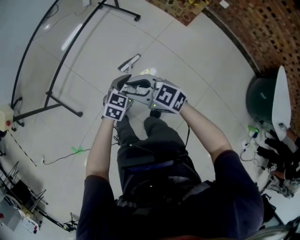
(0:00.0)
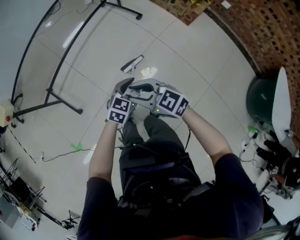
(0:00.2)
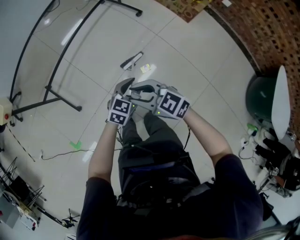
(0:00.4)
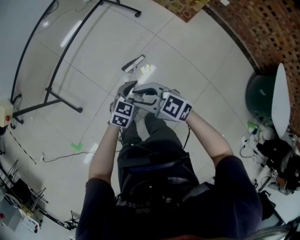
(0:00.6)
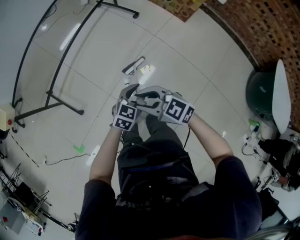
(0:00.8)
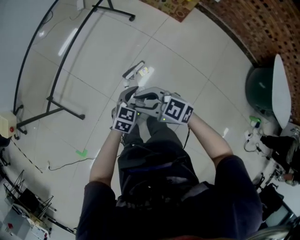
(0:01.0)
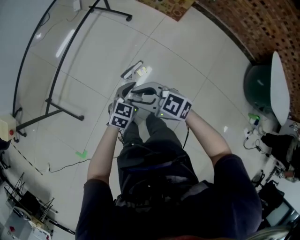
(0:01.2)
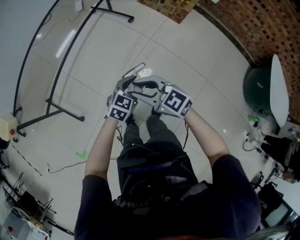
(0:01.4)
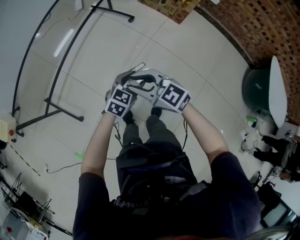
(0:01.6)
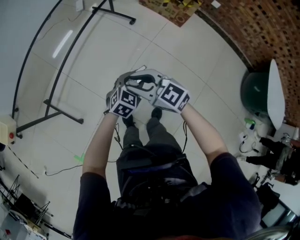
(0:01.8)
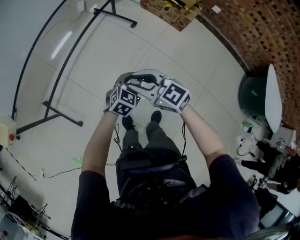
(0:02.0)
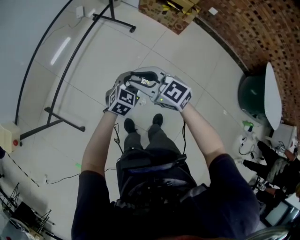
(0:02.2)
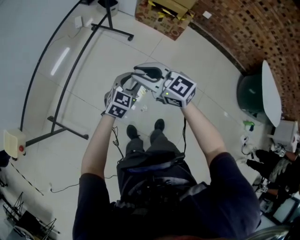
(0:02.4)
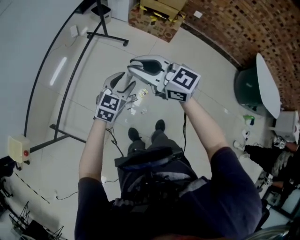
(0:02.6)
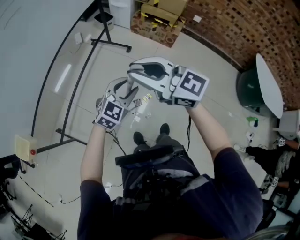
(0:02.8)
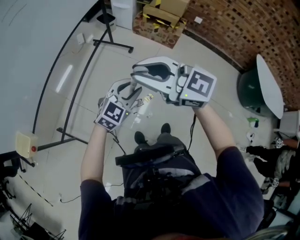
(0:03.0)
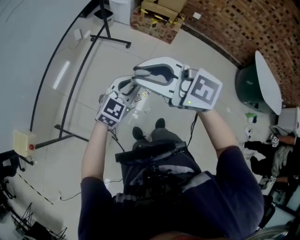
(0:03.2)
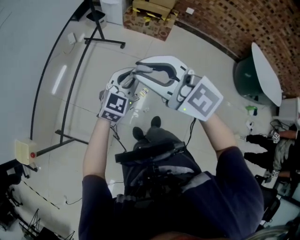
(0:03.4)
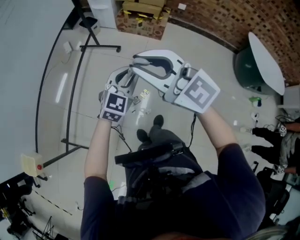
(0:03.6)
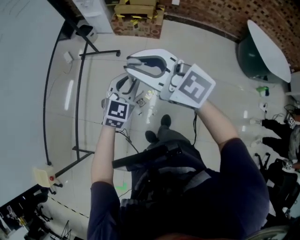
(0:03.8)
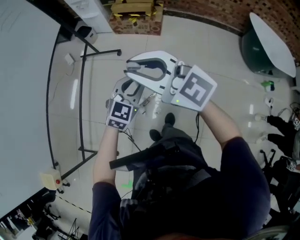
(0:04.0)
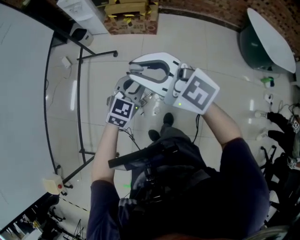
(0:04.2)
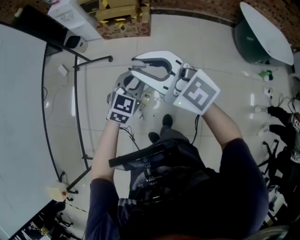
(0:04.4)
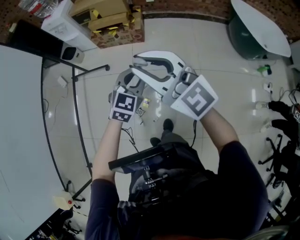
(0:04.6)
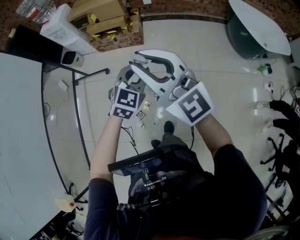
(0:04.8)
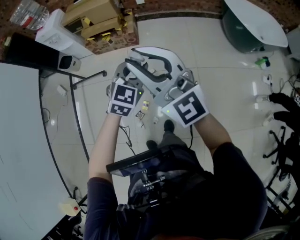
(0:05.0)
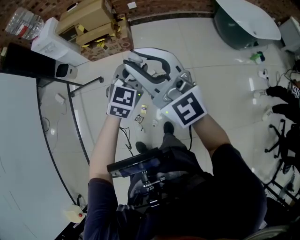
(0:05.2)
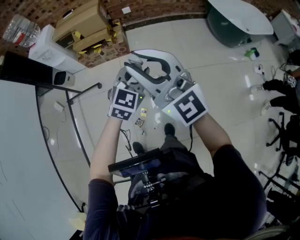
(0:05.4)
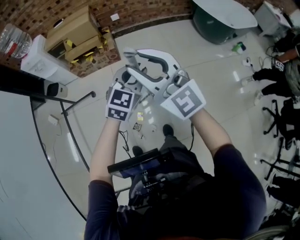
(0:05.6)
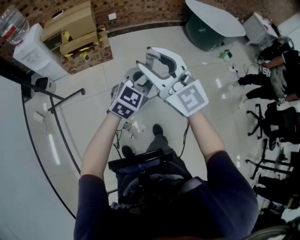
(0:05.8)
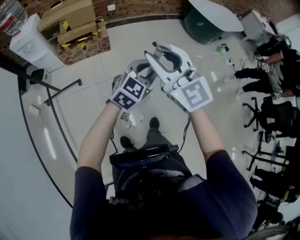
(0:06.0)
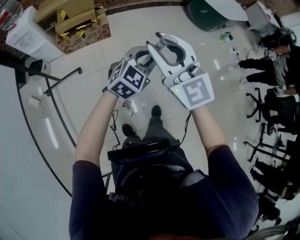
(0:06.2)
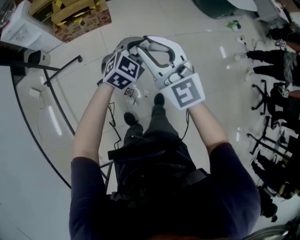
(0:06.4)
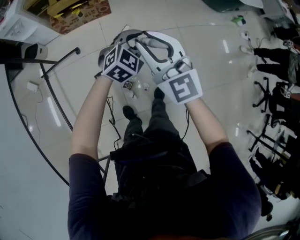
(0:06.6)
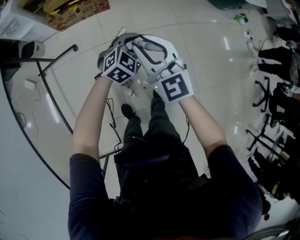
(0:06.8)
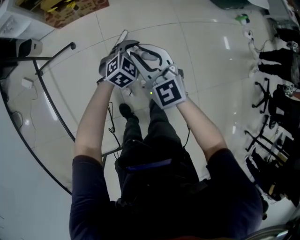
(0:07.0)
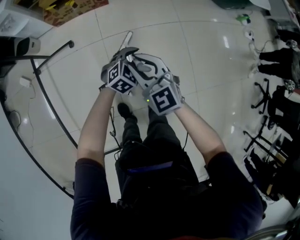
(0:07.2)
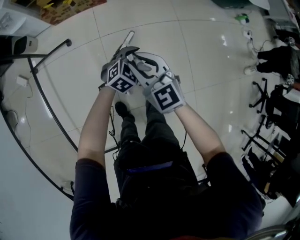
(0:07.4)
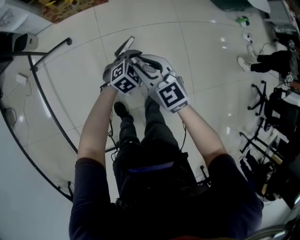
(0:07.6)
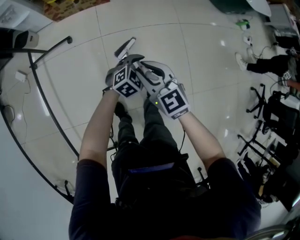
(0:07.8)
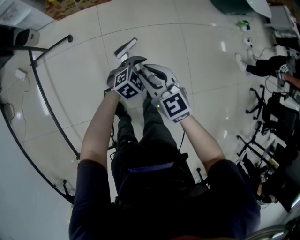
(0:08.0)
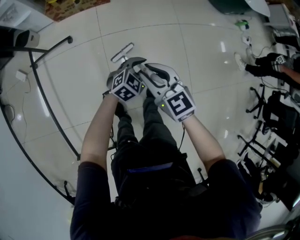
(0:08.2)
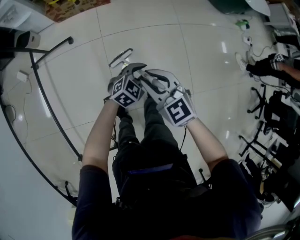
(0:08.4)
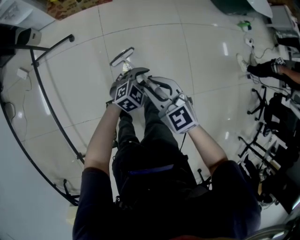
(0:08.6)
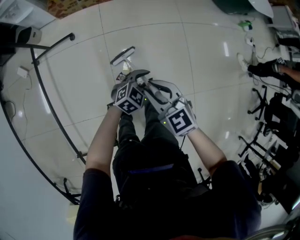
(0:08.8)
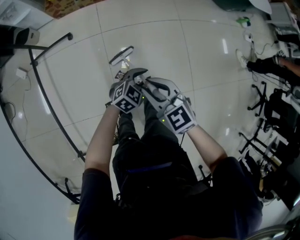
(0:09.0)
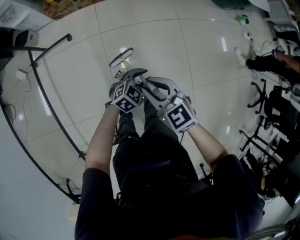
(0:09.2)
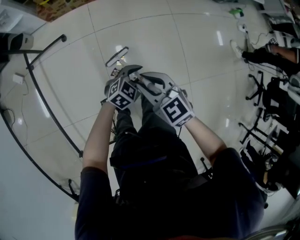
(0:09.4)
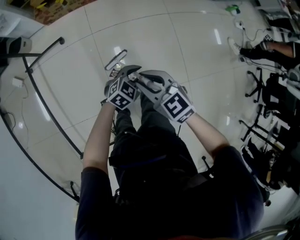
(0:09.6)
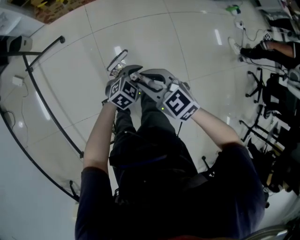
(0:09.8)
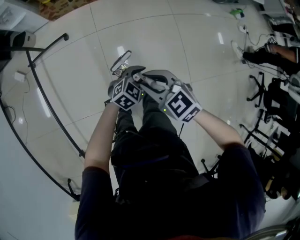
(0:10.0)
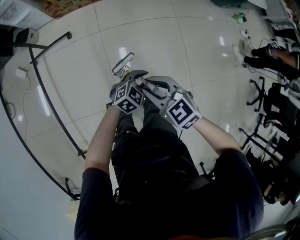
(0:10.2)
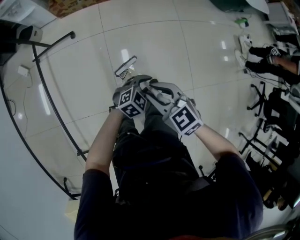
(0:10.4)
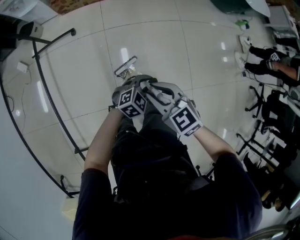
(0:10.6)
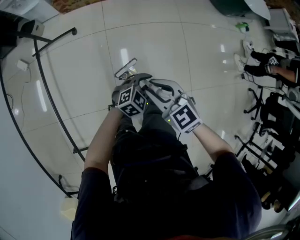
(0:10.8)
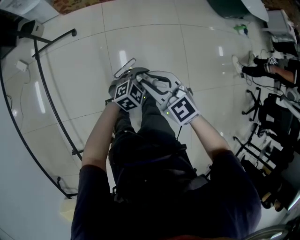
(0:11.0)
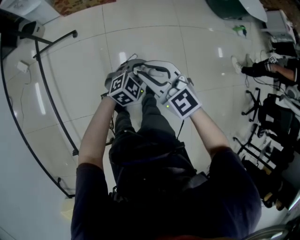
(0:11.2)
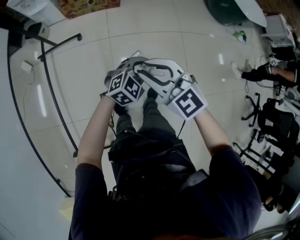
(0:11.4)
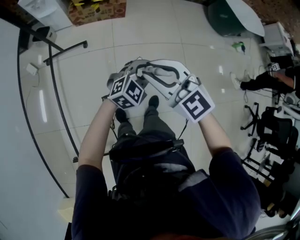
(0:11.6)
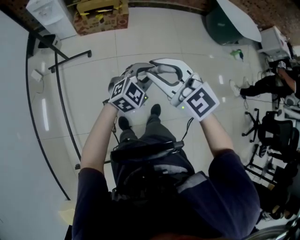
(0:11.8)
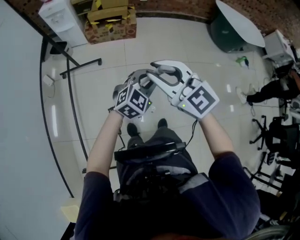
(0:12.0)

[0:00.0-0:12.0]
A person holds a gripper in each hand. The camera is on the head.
0:00.0 to 0:01.6: The right gripper travels backward and back again, about 5 cm each way. Meanwhile the left gripper goes backward and returns, some 5 cm each way.
0:01.6 to 0:03.0: The right gripper shifts roughly 25 cm upward. Meanwhile the left gripper shifts approximately 20 cm upward and to the left, and changes its angle by about 30 degrees.
0:03.0 to 0:04.4: Both grippers travel together to the right and forward, about 30 cm. The right gripper rotates approximately 30 degrees.
0:04.4 to 0:06.0: The left gripper travels upward by some 5 cm, and turns by some 40 degrees. The right gripper changes its angle by approximately 50 degrees.
0:06.0 to 0:07.6: The grippers both shift downward by roughly 30 cm. The left gripper rotates about 30 degrees. The right gripper changes its angle by roughly 30 degrees.
0:07.6 to 0:09.0: Both grippers move backward, approximately 10 cm.
0:09.0 to 0:10.4: The grippers both shift backward by some 5 cm.
0:10.4 to 0:12.0: The left gripper heads upward and to the left, covering some 25 cm, and turns by roughly 30 degrees. The right gripper heads upward, covering about 25 cm, and changes its angle by about 30 degrees.

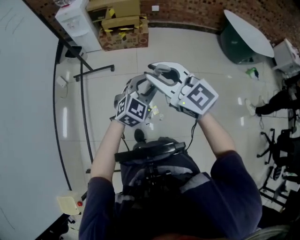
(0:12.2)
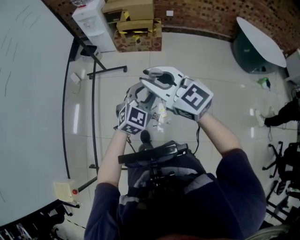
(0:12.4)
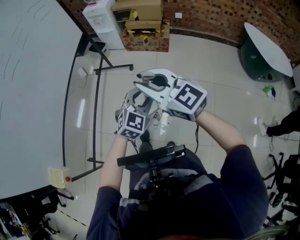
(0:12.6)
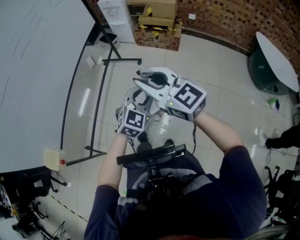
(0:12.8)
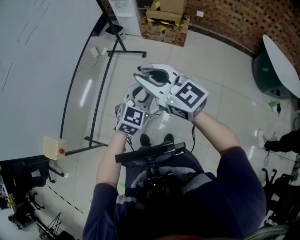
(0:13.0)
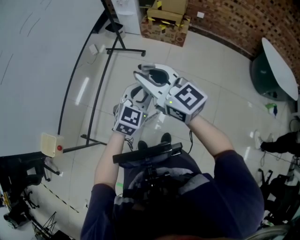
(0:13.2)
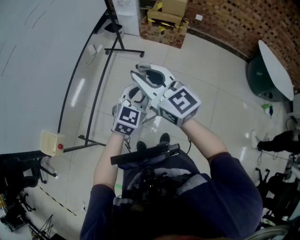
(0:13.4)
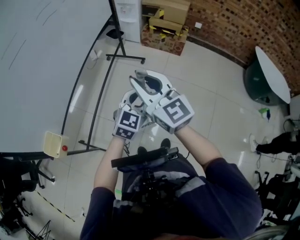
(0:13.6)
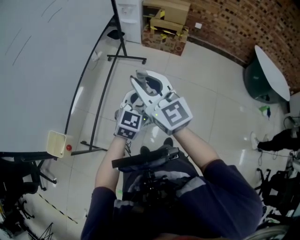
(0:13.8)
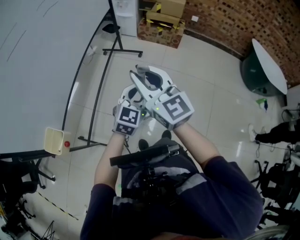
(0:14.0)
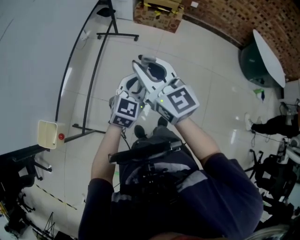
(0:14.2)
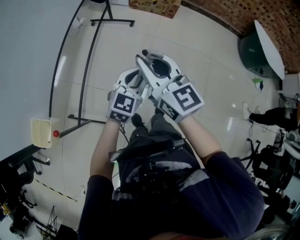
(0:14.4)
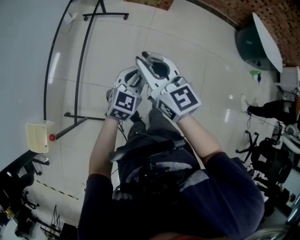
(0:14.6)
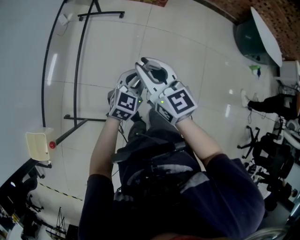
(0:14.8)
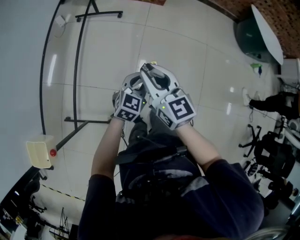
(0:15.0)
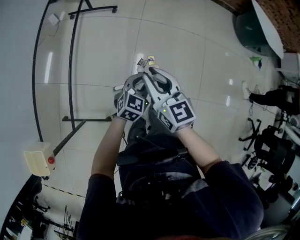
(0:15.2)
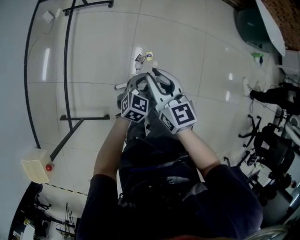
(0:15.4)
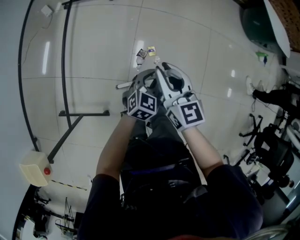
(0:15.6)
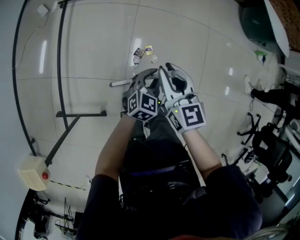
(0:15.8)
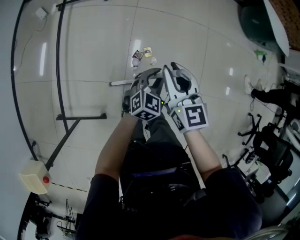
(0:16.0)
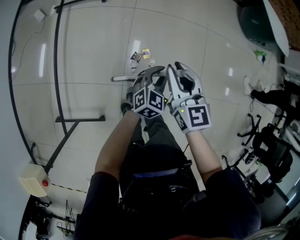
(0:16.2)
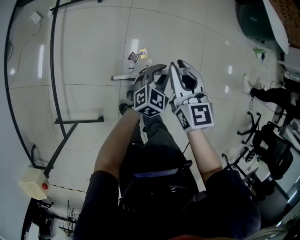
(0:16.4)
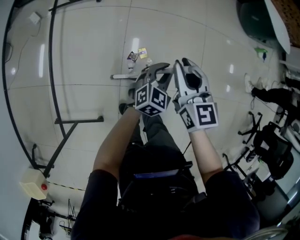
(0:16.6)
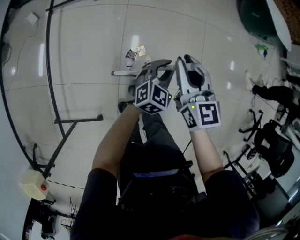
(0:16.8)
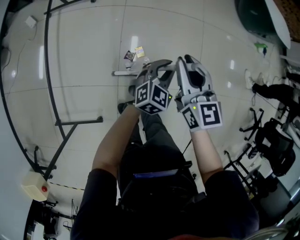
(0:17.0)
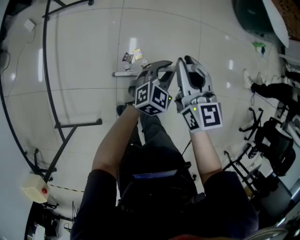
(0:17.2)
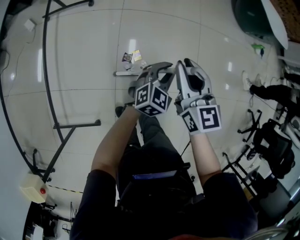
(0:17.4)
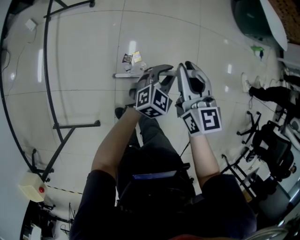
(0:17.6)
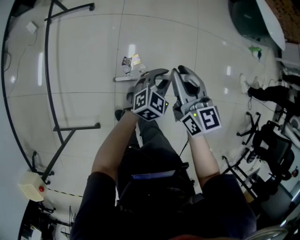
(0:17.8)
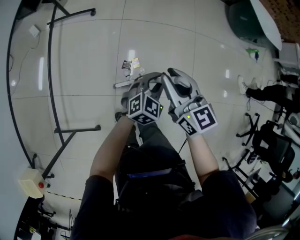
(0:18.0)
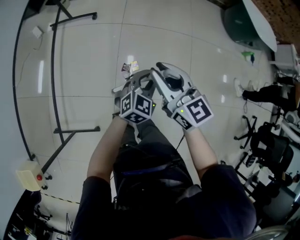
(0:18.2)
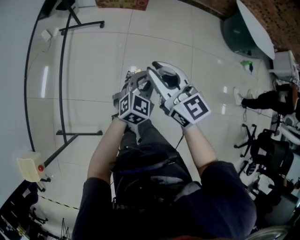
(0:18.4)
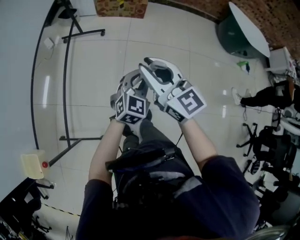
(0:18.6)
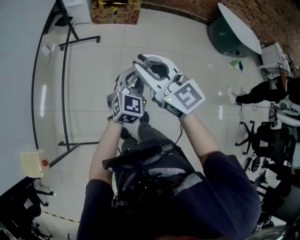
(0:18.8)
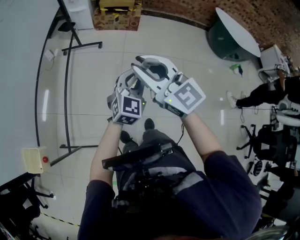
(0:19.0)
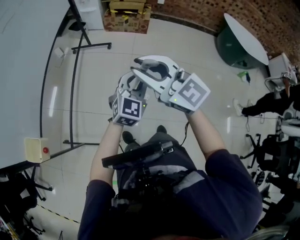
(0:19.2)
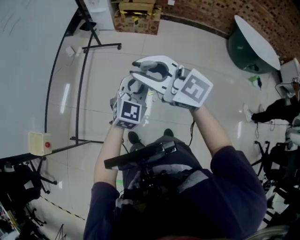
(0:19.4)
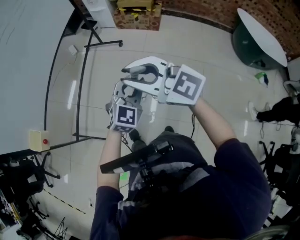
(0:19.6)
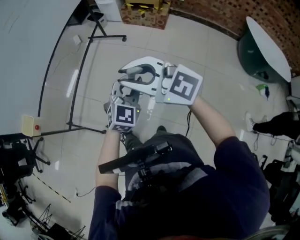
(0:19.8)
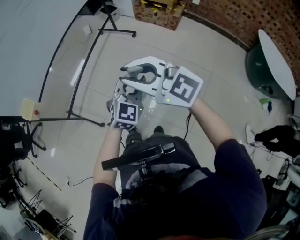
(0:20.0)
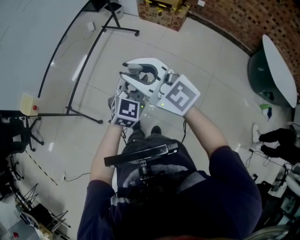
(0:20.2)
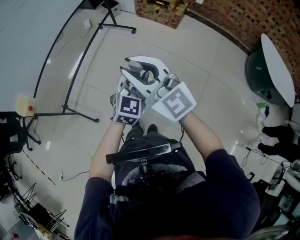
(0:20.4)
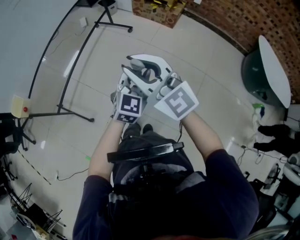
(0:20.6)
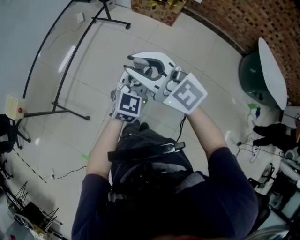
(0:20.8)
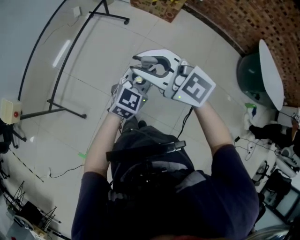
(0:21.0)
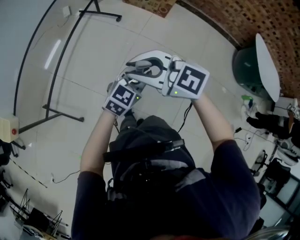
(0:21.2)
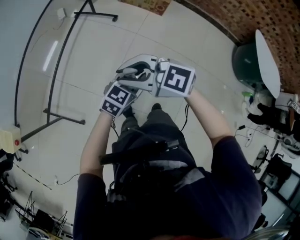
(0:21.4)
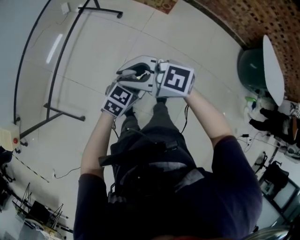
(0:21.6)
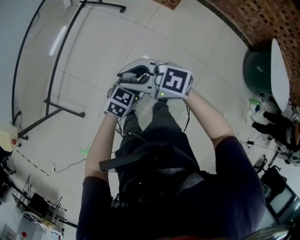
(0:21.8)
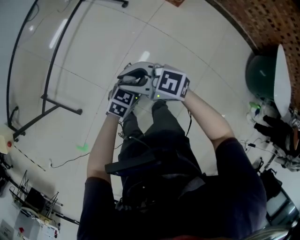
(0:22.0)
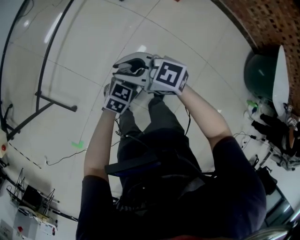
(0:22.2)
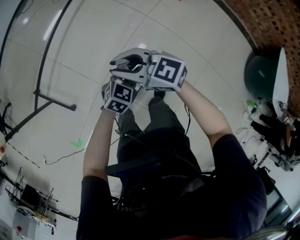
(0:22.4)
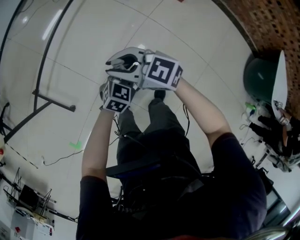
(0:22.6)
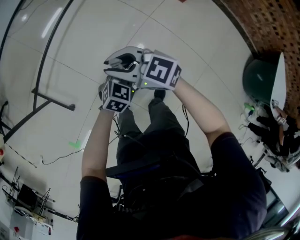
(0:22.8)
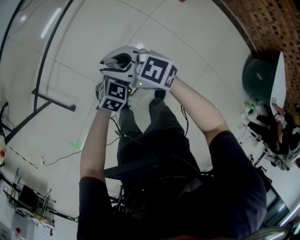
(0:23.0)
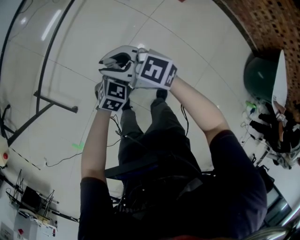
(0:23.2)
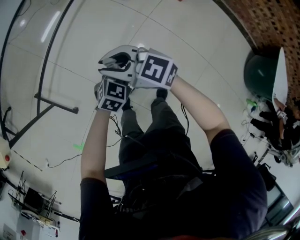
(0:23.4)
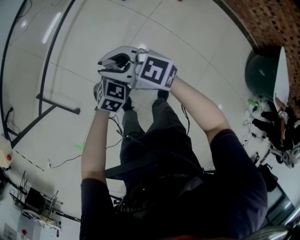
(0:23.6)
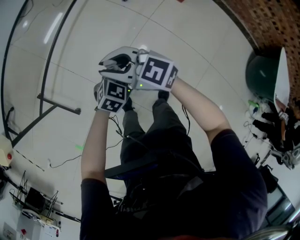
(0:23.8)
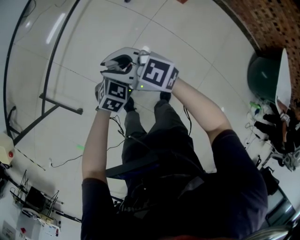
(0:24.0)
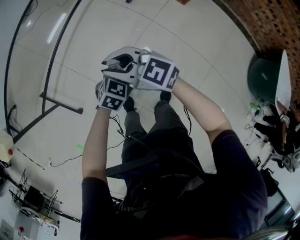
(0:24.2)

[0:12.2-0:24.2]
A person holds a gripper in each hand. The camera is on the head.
0:12.2 to 0:13.8: The two grippers go about 25 cm to the left and backward. The left gripper rotates roughly 30 degrees.
0:13.8 to 0:15.2: The grippers both shift downward by some 25 cm. The left gripper turns by some 20 degrees; the right gripper turns by about 30 degrees.
0:15.2 to 0:16.6: The grippers both shift to the right, forward and downward by approximately 20 cm.
0:16.6 to 0:18.2: The left gripper goes about 10 cm upward. The right gripper goes about 10 cm upward and backward, and rotates about 20 degrees.
0:18.2 to 0:19.8: Both grippers move upward, some 20 cm. The right gripper swivels some 60 degrees, while the left gripper changes its angle by some 30 degrees.
0:19.8 to 0:21.2: The right gripper moves about 15 cm. Meanwhile the left gripper ends up some 15 cm from where it was, and turns by about 30 degrees.
0:21.2 to 0:22.6: The two grippers go approximately 20 cm downward. The left gripper swivels roughly 20 degrees.
0:22.6 to 0:24.2: The right gripper moves some 5 cm. Meanwhile the left gripper ends up some 5 cm from where it was.
